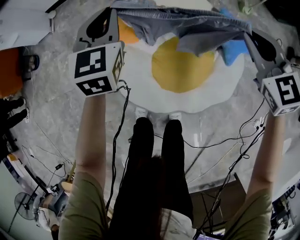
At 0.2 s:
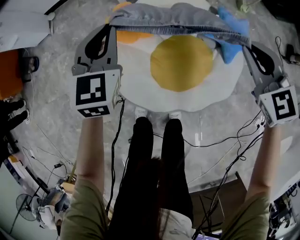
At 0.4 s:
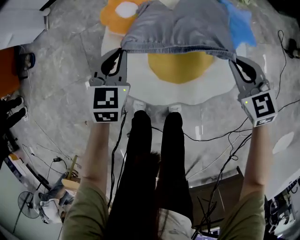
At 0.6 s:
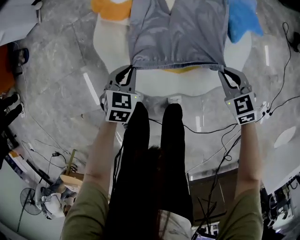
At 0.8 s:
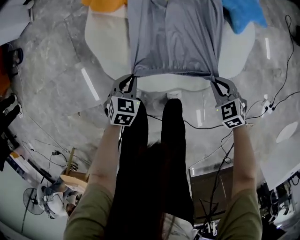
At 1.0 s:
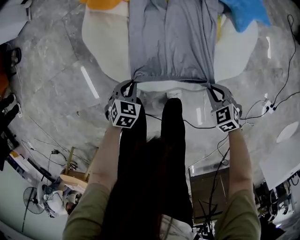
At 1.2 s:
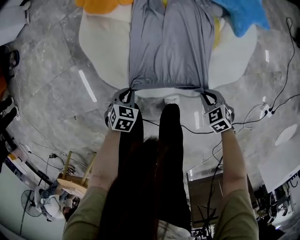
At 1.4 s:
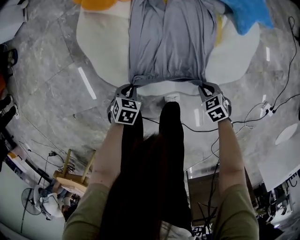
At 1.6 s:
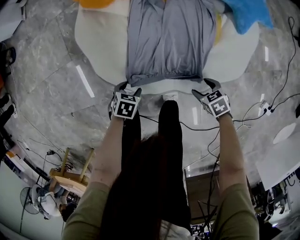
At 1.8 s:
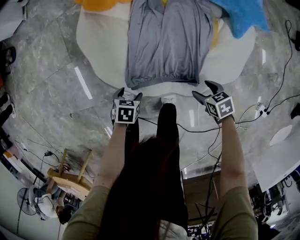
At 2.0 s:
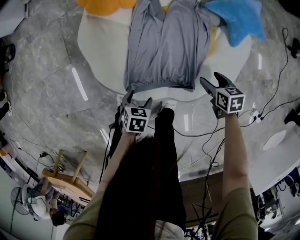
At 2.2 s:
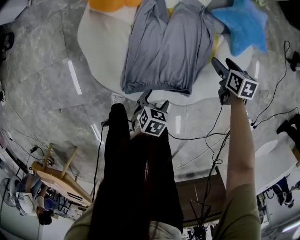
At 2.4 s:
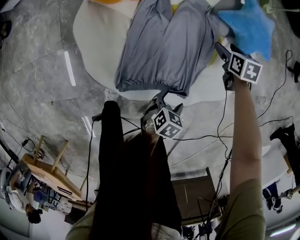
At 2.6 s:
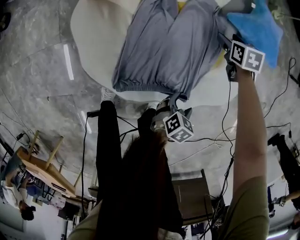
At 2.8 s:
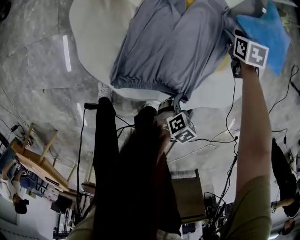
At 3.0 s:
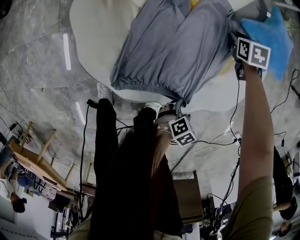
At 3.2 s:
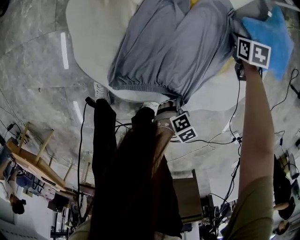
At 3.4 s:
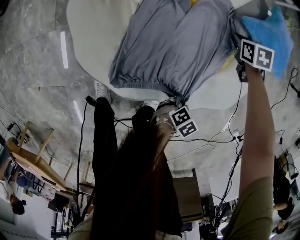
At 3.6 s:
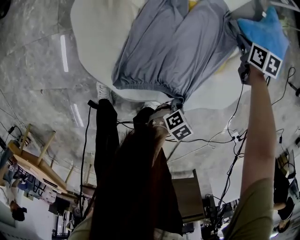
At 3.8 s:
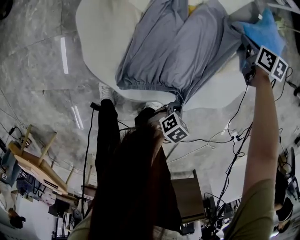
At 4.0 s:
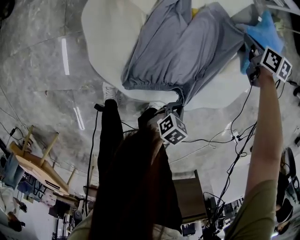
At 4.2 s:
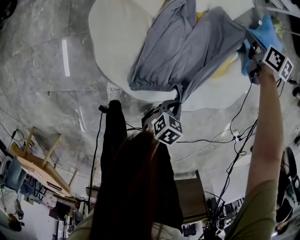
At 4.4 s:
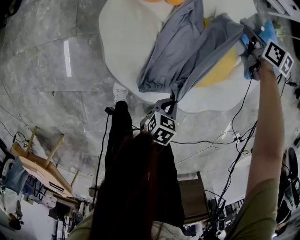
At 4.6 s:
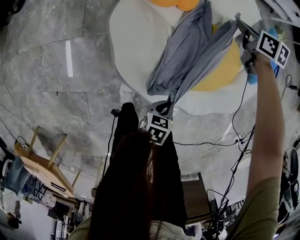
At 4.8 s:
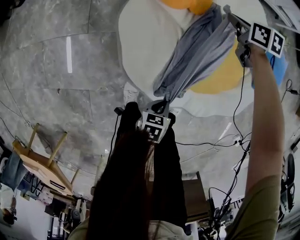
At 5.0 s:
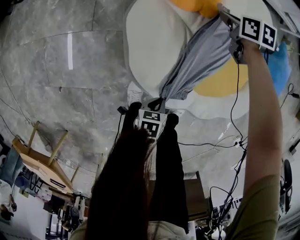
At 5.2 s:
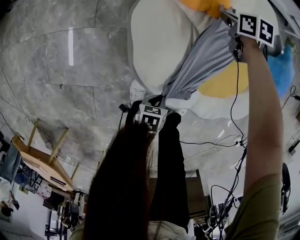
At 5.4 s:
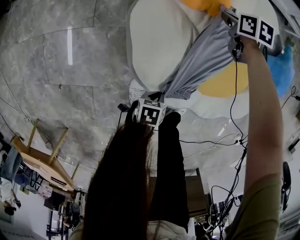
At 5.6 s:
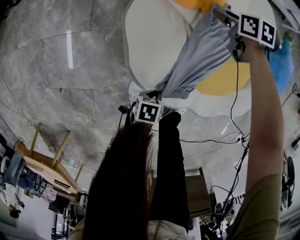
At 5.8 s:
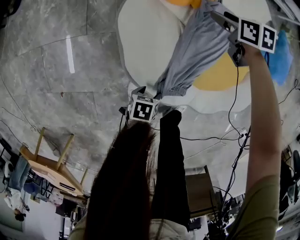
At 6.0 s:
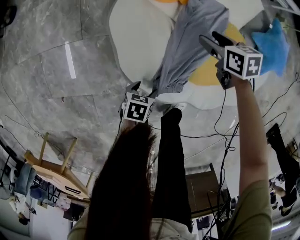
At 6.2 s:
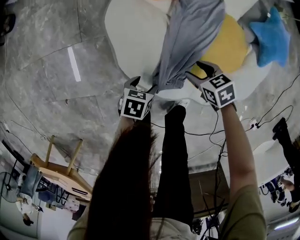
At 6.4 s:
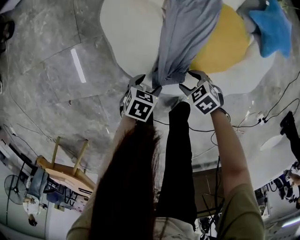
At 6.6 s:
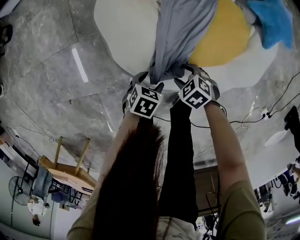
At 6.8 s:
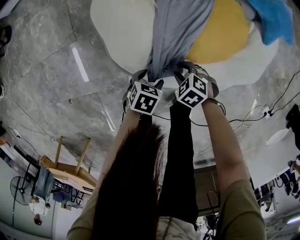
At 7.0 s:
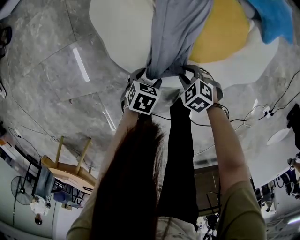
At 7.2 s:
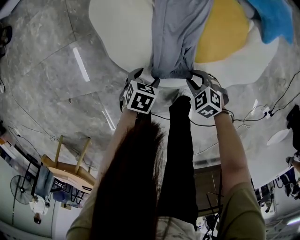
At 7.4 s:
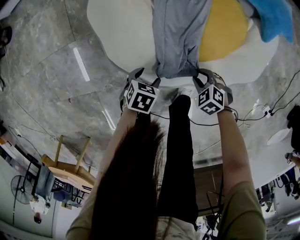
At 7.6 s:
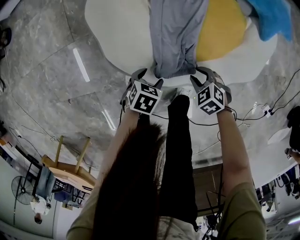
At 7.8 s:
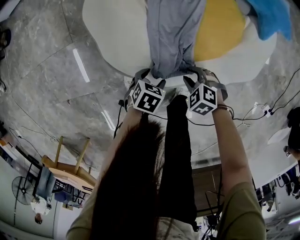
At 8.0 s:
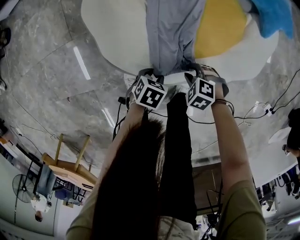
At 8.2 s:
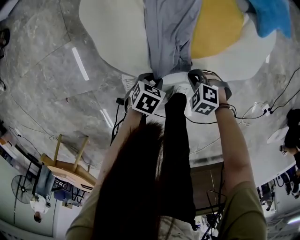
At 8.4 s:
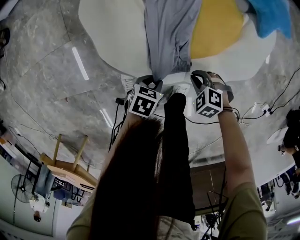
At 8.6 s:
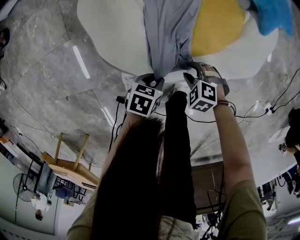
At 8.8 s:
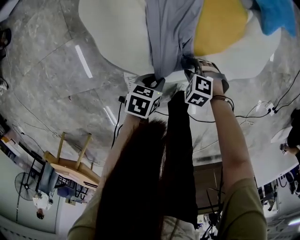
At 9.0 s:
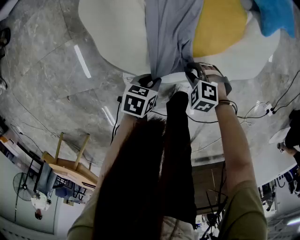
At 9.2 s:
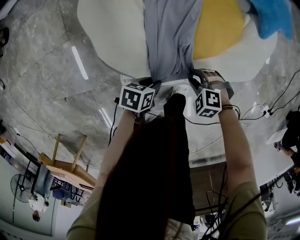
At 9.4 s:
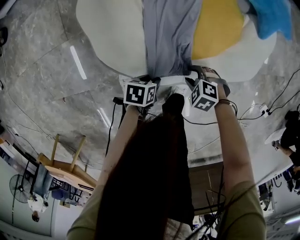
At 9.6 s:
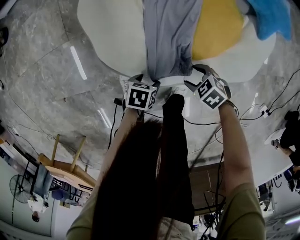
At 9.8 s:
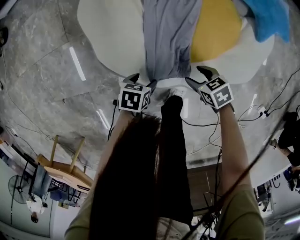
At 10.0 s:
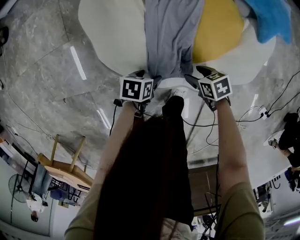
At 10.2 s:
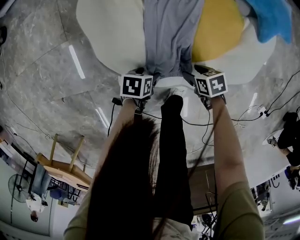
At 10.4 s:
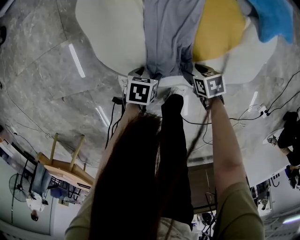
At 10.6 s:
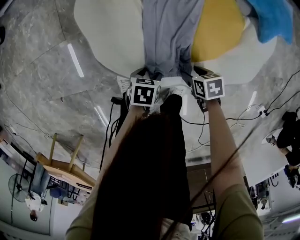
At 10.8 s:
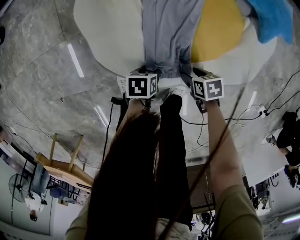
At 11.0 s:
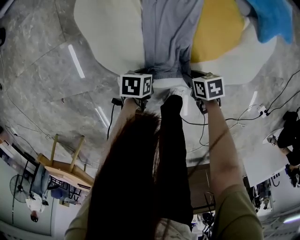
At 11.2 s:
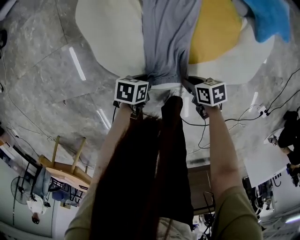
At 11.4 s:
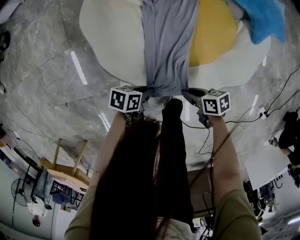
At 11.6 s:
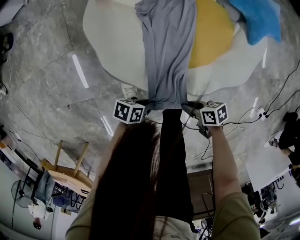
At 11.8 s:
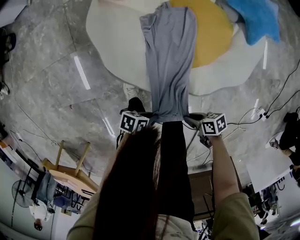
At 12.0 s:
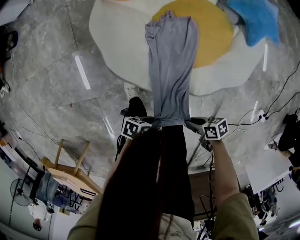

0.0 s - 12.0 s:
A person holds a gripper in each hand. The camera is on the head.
0.0 s - 1.6 s: Both grippers travel together downward, some 50 cm. The right gripper points its fingers some 40 degrees further downward, and opens; the left gripper angles its fingers downward, by roughly 50 degrees, and opens up.
1.6 s - 3.0 s: The left gripper ends up some 35 cm from where it was. The right gripper goes upward and returns, some 10 cm each way, rotates about 20 degrees, and closes its fingers.
3.0 s - 4.4 s: The right gripper heads upward, covering about 15 cm, and changes its angle by approximately 30 degrees, while the left gripper shifts by approximately 20 cm, turns by some 30 degrees, and closes its fingers.
4.4 s - 6.0 s: The left gripper ends up some 20 cm from where it was, and opens its fingers; the right gripper moves roughly 20 cm, and opens up.
6.0 s - 7.6 s: The left gripper shifts by approximately 5 cm, and changes its angle by about 20 degrees. Meanwhile the right gripper ends up about 30 cm from where it was, swivels some 40 degrees, and closes.
7.6 s - 9.0 s: The left gripper closes, while the right gripper turns by roughly 20 degrees, and closes, then opens again.
9.0 s - 10.4 s: The right gripper rolls clockwise, seen from behind, by roughly 60 degrees, and opens its fingers; the left gripper moves about 5 cm, and opens its fingers.
10.4 s - 12.0 s: The left gripper moves about 20 cm, rotates roughly 30 degrees, and closes; the right gripper ends up about 20 cm from where it was, rotates about 30 degrees, and closes up.

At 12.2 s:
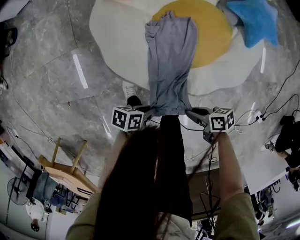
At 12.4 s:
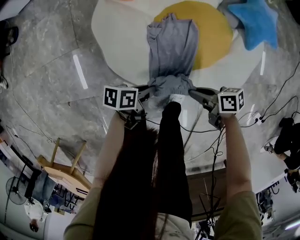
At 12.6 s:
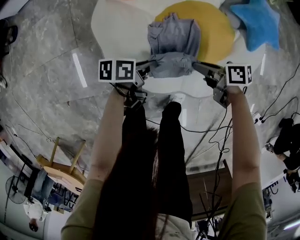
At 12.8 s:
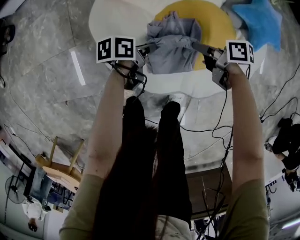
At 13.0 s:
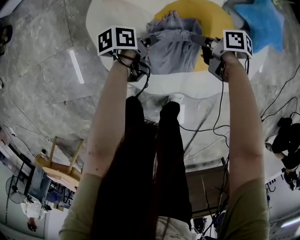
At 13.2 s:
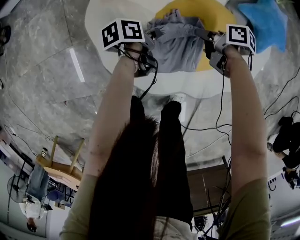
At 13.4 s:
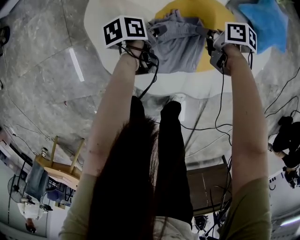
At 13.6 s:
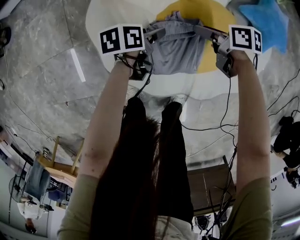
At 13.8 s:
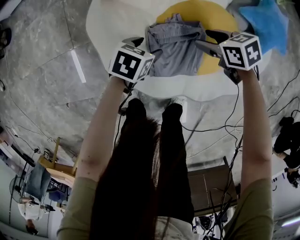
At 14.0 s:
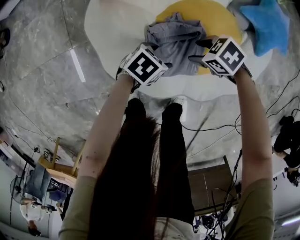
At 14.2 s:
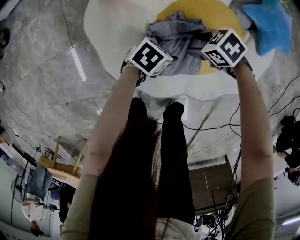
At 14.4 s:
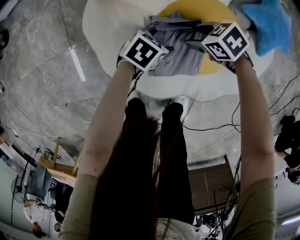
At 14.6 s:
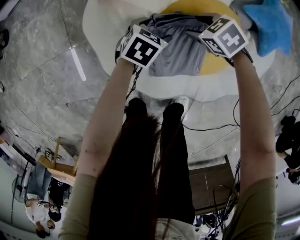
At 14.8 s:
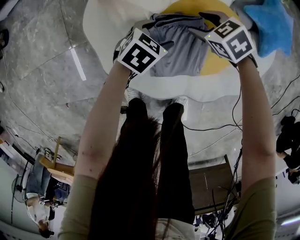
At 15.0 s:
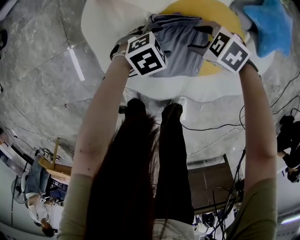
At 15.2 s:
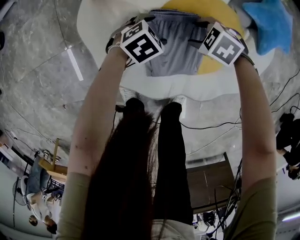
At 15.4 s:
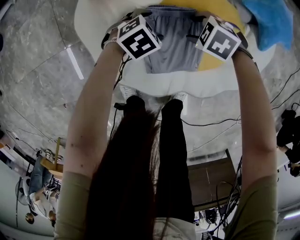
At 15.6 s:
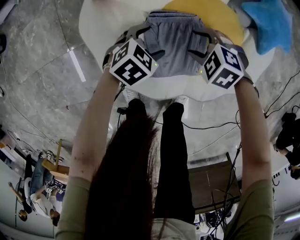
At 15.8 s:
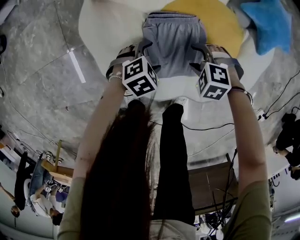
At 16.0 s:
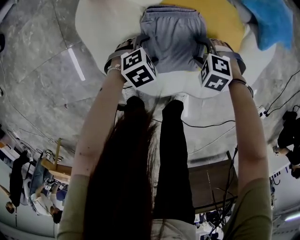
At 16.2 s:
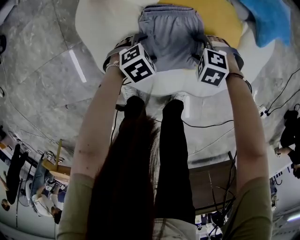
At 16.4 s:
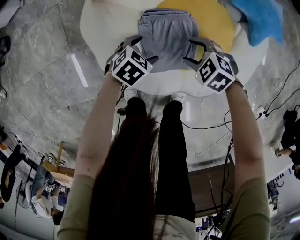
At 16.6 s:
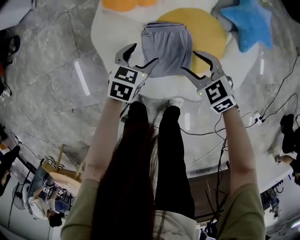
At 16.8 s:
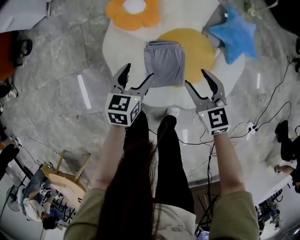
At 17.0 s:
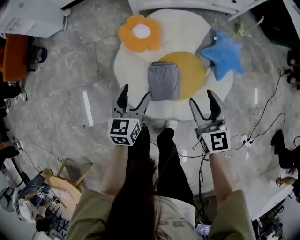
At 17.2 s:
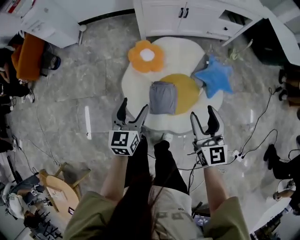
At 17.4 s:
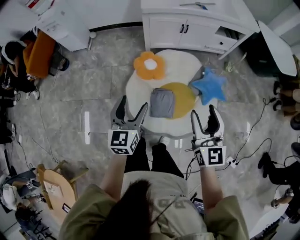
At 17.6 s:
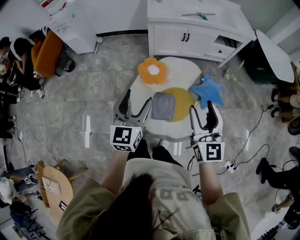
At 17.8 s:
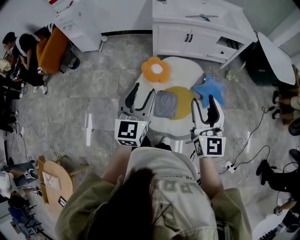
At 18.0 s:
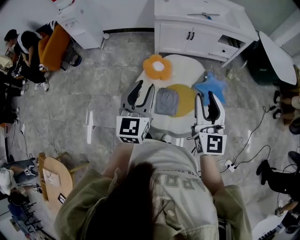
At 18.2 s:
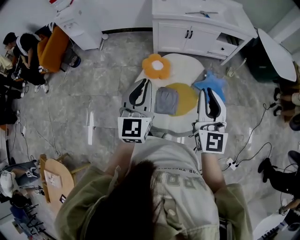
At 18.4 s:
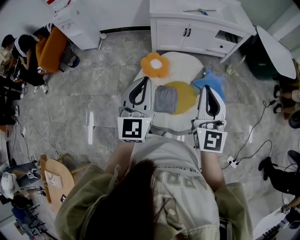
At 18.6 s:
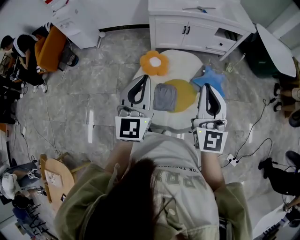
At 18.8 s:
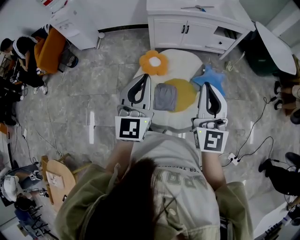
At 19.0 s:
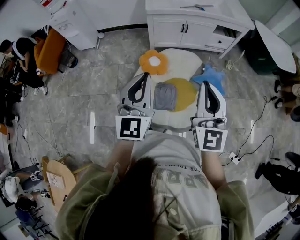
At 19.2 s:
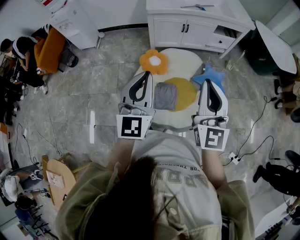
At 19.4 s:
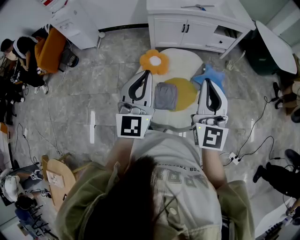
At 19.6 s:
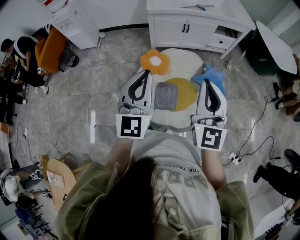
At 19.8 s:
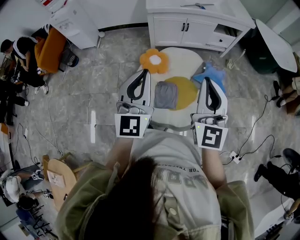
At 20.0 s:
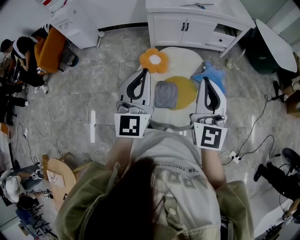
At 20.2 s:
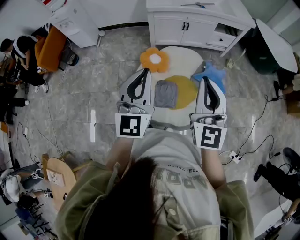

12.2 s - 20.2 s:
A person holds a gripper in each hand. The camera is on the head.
12.2 s - 13.8 s: The right gripper shifts by approximately 35 cm, swivels roughly 40 degrees, and opens up, while the left gripper ends up roughly 30 cm from where it was, turns by about 40 degrees, and opens its fingers.
13.8 s - 15.4 s: The left gripper moves roughly 10 cm, and swivels about 40 degrees. Meanwhile the right gripper shifts approximately 5 cm downward, and swivels roughly 40 degrees.
15.4 s - 17.0 s: The right gripper is displaced upward by about 40 cm, and points its fingers about 50 degrees further upward. The left gripper swings up and down, about 40 cm each way, with 2 reversals, and tilts its fingers approximately 30 degrees upward.
17.0 s - 18.6 s: Both grippers travel together upward, some 40 cm. The right gripper rotates about 30 degrees, and closes. Meanwhile the left gripper angles its fingers upward, by roughly 30 degrees, and closes up.
18.6 s - 20.2 s: The grippers move only a little.

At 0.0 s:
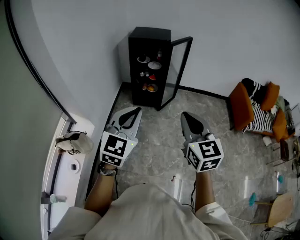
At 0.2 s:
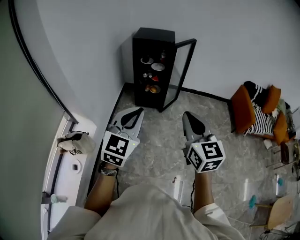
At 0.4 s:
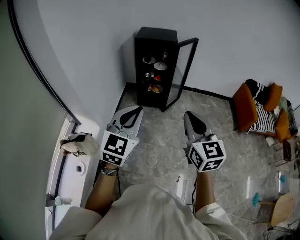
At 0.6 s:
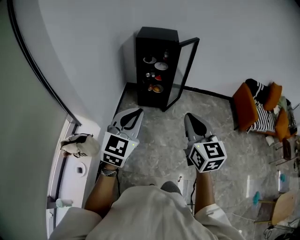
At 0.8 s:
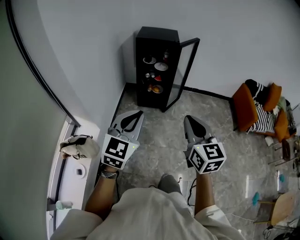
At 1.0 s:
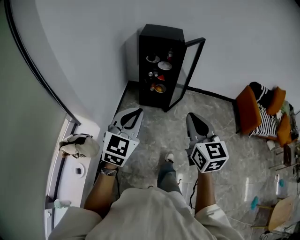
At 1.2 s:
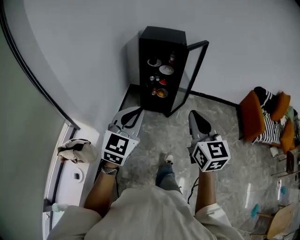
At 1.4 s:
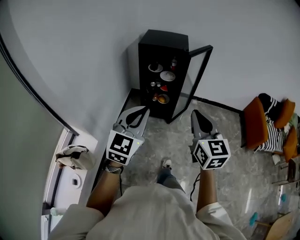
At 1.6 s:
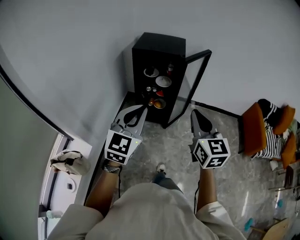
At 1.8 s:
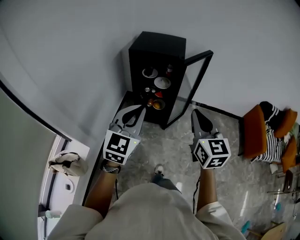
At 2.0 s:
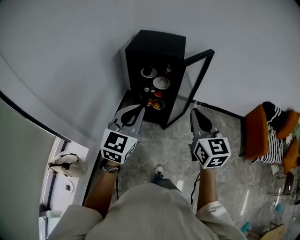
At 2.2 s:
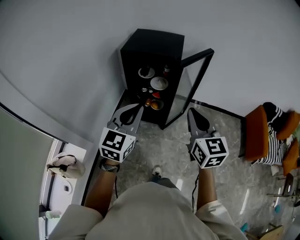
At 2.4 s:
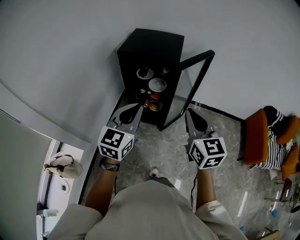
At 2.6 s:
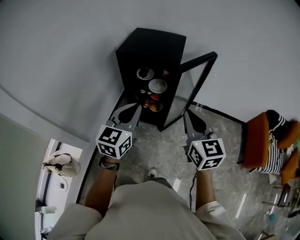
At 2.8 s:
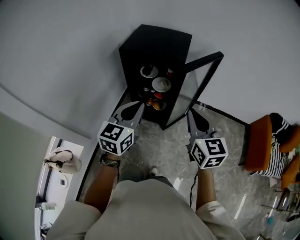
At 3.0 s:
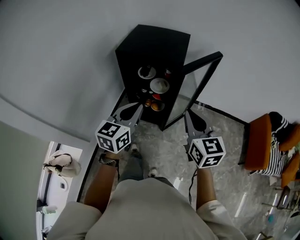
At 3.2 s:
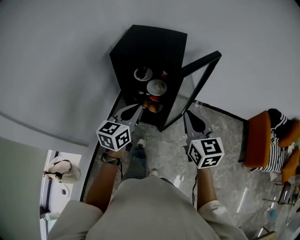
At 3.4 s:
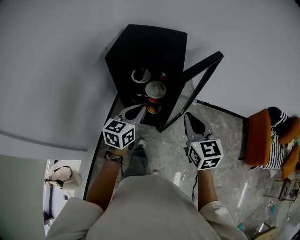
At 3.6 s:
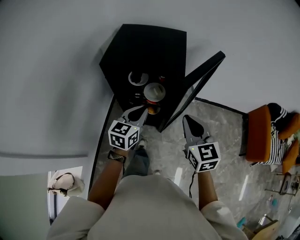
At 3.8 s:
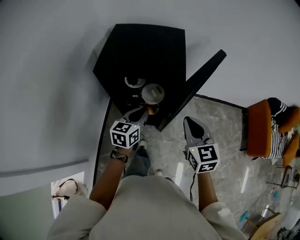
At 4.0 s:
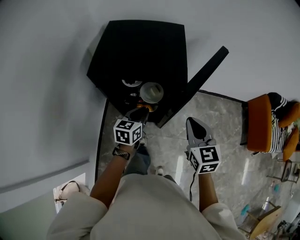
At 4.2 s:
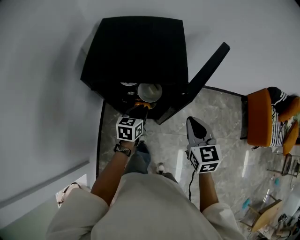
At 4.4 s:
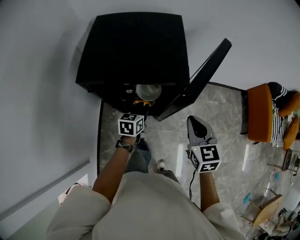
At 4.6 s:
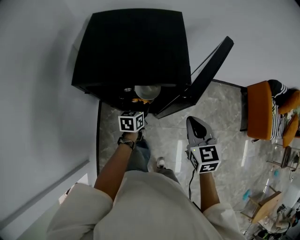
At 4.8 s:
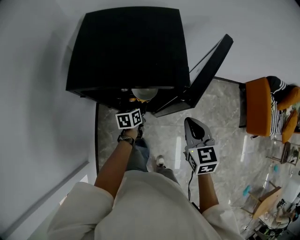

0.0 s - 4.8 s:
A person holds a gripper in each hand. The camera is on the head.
0.0 s - 1.6 s: Both grippers move forward, approximately 30 cm.
1.6 s - 3.2 s: Both grippers travel together forward, some 25 cm. The left gripper rotates some 30 degrees.
3.2 s - 4.8 s: The right gripper travels forward and downward by roughly 20 cm, and turns by roughly 30 degrees; the left gripper is displaced downward and forward by approximately 40 cm, rotates approximately 40 degrees, and opens.
